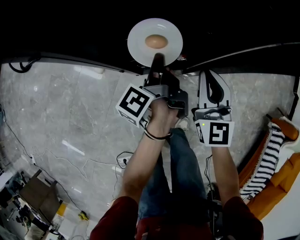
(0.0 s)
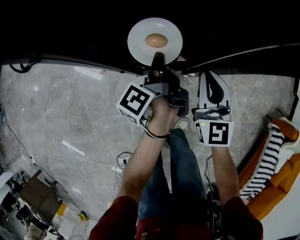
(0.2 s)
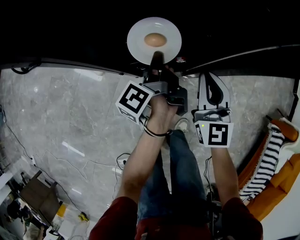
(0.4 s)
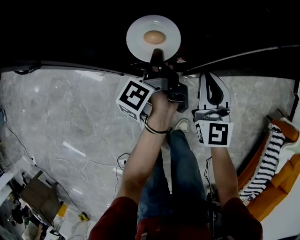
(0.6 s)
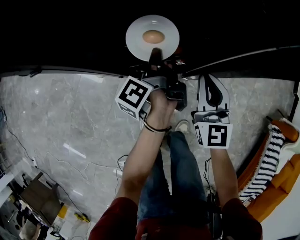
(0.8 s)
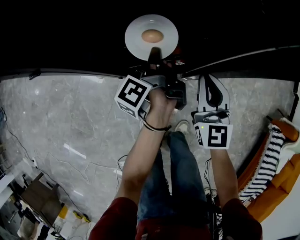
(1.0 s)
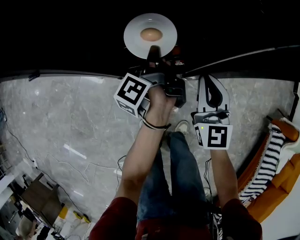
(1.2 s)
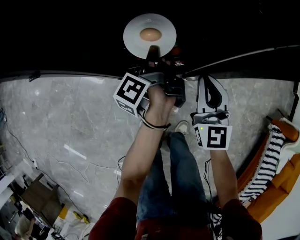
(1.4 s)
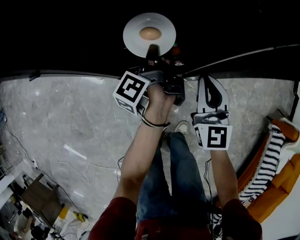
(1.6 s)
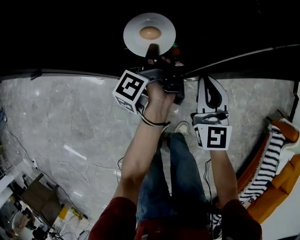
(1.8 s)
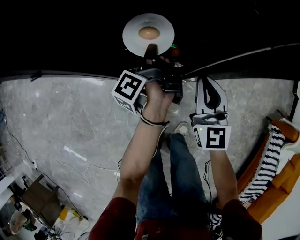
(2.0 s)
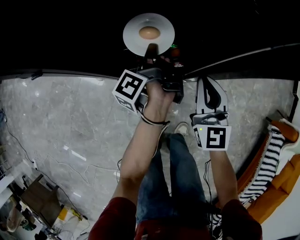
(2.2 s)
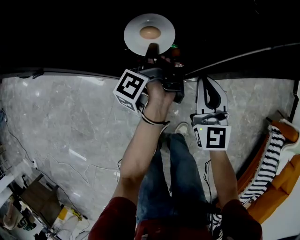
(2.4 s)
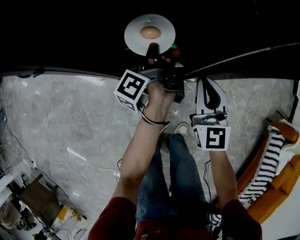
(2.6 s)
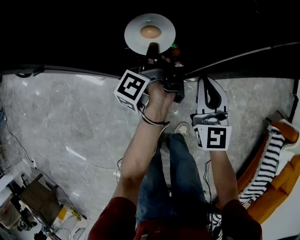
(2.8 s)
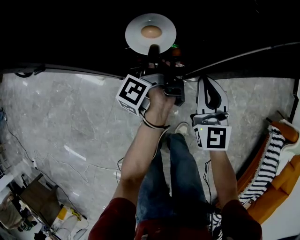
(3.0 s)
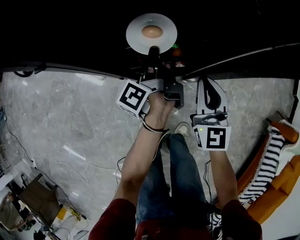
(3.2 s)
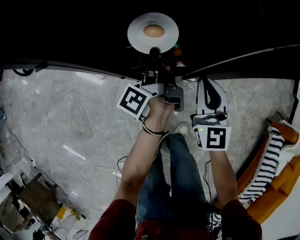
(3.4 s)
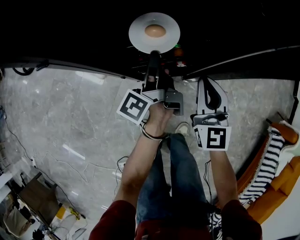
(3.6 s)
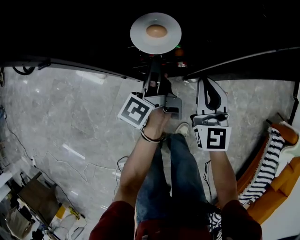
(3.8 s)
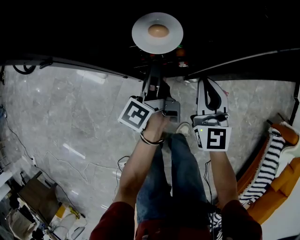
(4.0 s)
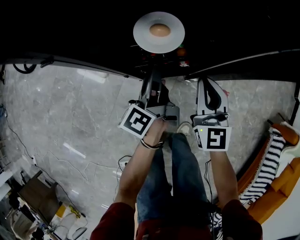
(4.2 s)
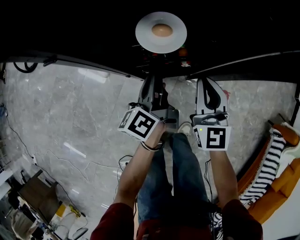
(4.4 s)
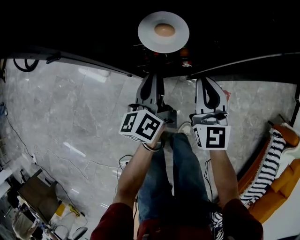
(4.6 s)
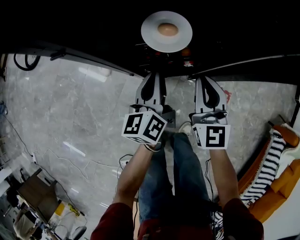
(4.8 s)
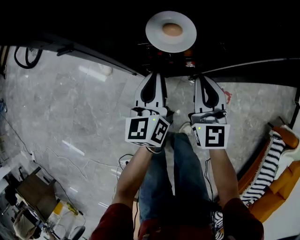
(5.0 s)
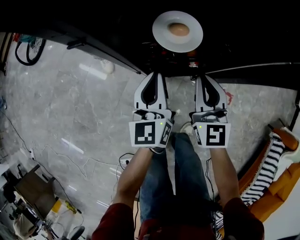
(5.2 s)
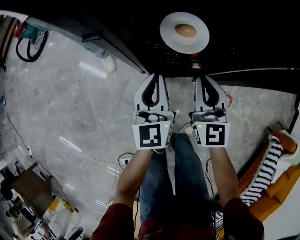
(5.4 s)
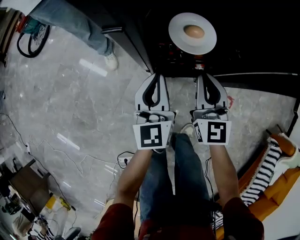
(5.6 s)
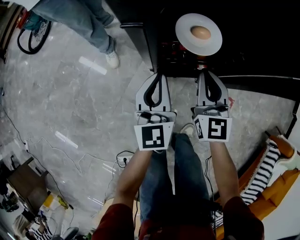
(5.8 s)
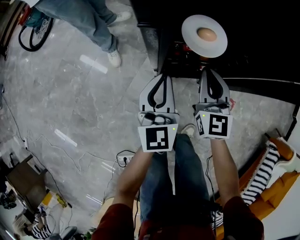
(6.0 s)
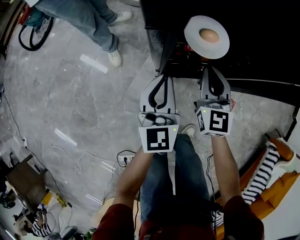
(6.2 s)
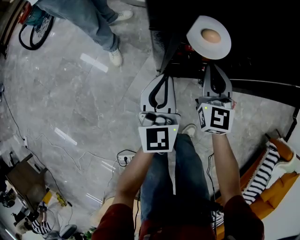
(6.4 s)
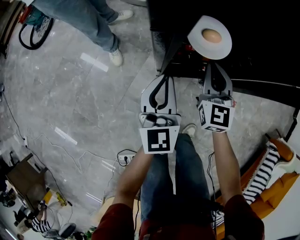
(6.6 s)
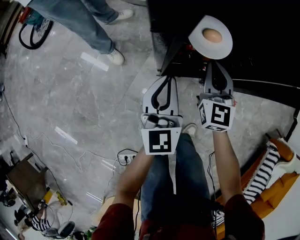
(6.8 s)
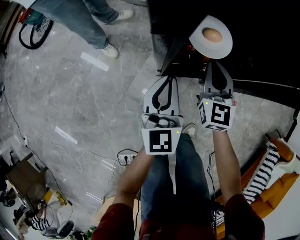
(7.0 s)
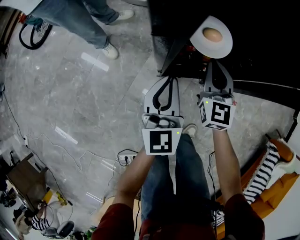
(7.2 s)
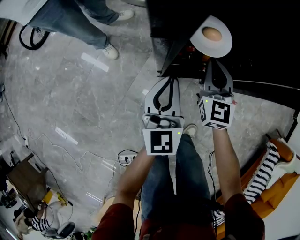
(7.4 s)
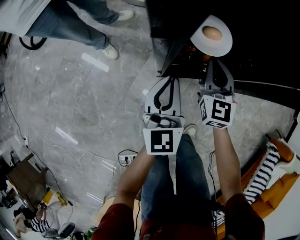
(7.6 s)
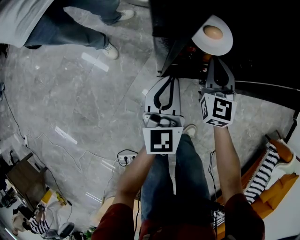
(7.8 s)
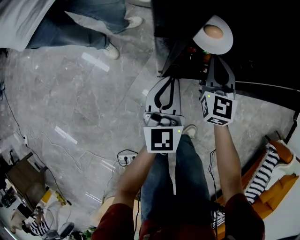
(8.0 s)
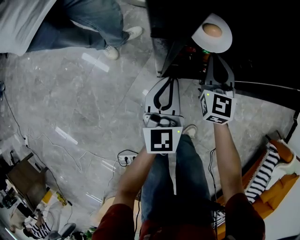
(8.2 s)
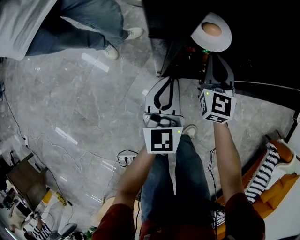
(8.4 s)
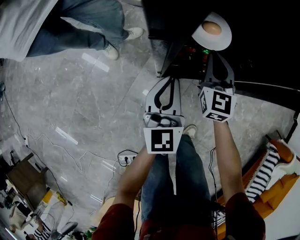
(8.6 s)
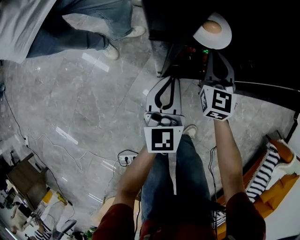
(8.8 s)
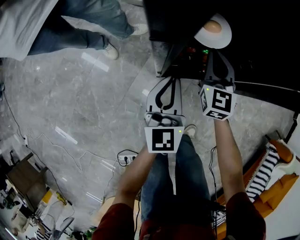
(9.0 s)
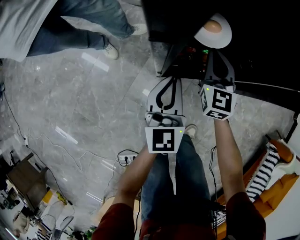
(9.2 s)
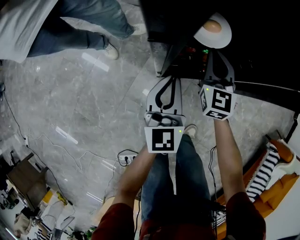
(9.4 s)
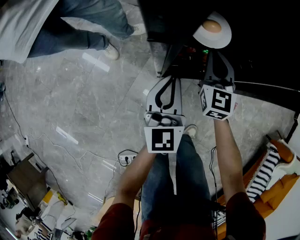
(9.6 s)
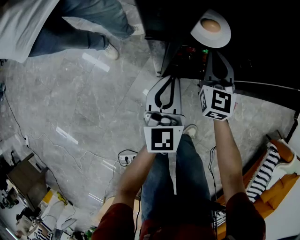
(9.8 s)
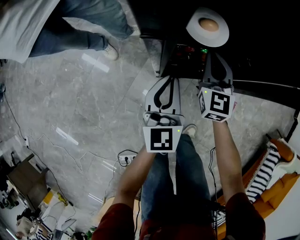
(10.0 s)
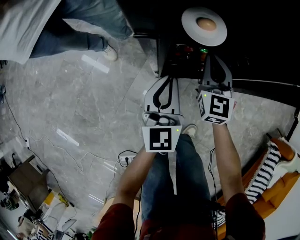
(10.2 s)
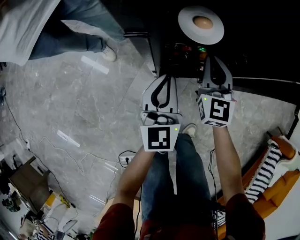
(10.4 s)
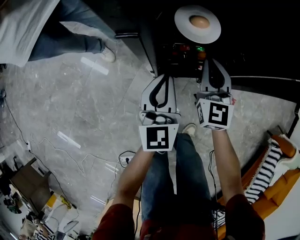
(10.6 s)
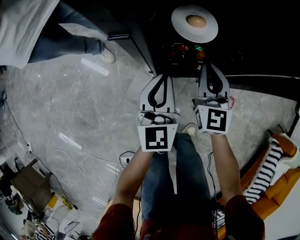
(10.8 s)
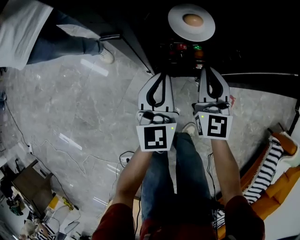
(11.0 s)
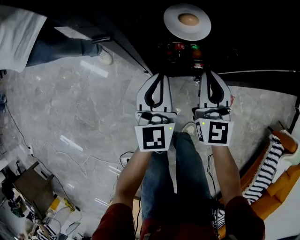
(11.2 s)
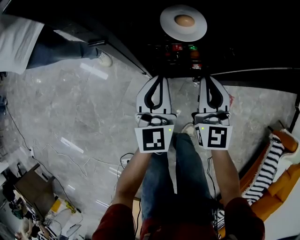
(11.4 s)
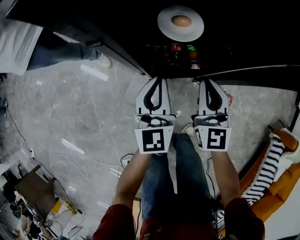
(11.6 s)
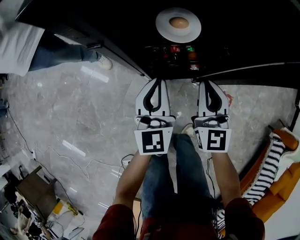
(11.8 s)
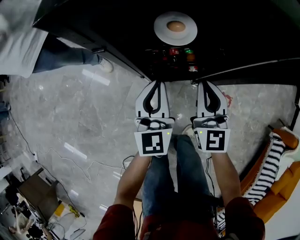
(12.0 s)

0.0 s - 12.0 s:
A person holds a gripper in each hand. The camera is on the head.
0.0 s - 1.6 s: The left gripper goes approximately 5 cm forward.
1.6 s - 3.0 s: Neither gripper changes place.
3.0 s - 4.4 s: The left gripper goes roughly 5 cm backward, and rotates about 30 degrees.
4.4 s - 6.0 s: Both grippers travel together to the left, approximately 10 cm. The left gripper twists roughly 50 degrees clockwise, seen from behind.
6.0 s - 7.6 s: The right gripper moves approximately 5 cm.
7.6 s - 10.4 s: The grippers make only small movements.
10.4 s - 12.0 s: The left gripper moves approximately 5 cm; the right gripper goes some 10 cm backward and upward.

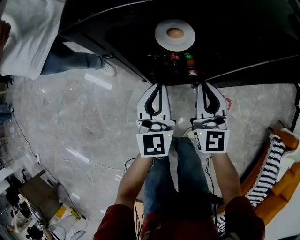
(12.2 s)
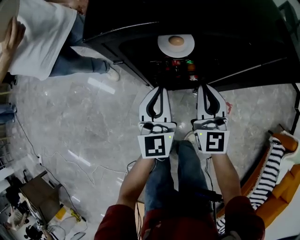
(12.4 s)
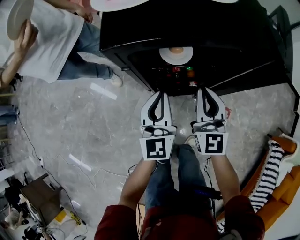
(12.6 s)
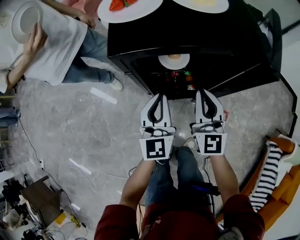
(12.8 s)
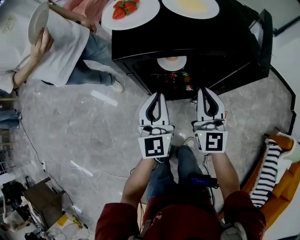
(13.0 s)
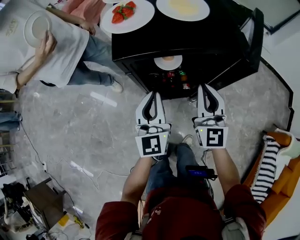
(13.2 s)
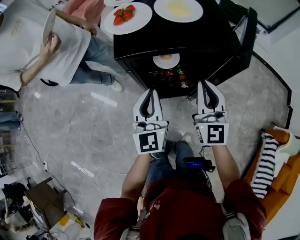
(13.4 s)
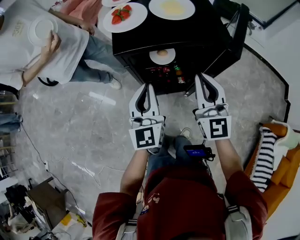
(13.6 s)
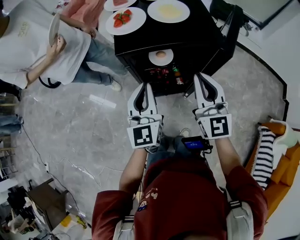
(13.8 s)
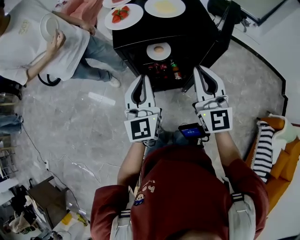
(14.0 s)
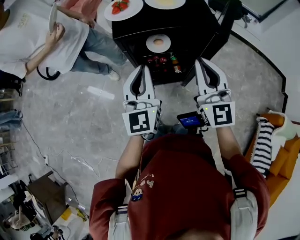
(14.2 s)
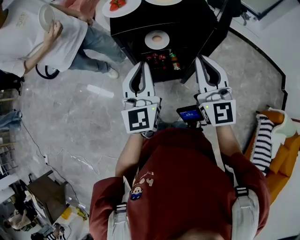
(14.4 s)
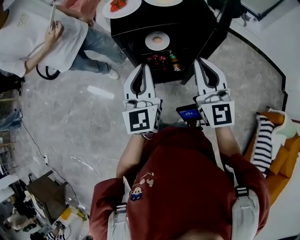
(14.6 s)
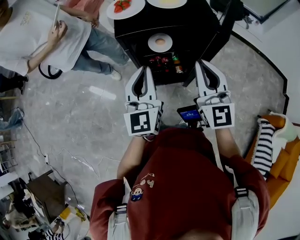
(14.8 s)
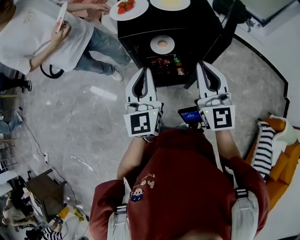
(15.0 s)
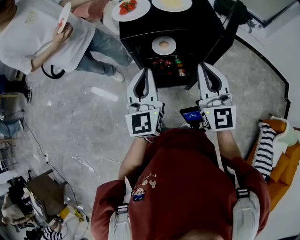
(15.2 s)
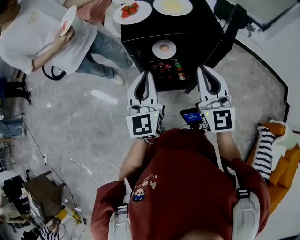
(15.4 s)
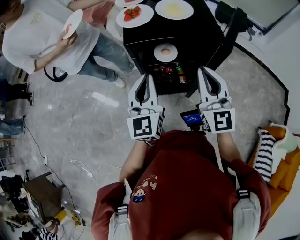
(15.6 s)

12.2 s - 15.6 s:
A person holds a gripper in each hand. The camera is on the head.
12.2 s - 13.8 s: The two grippers go some 25 cm upward.
13.8 s - 15.6 s: The grippers move only a little.

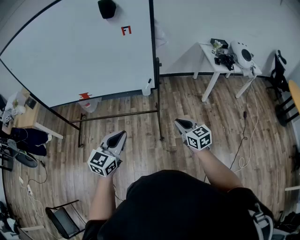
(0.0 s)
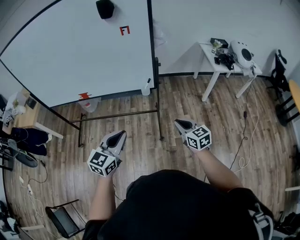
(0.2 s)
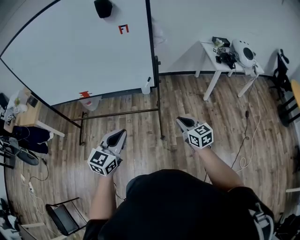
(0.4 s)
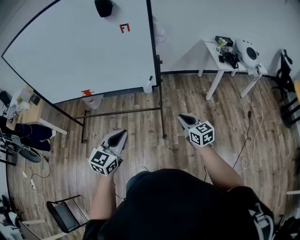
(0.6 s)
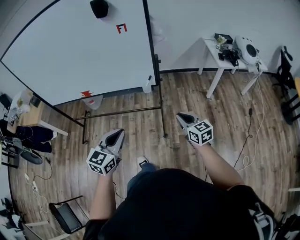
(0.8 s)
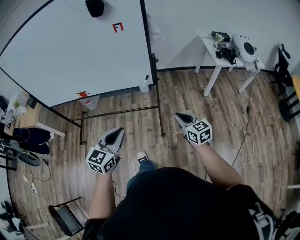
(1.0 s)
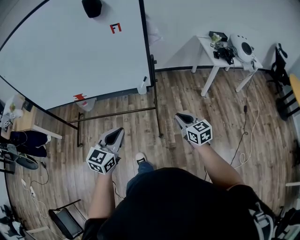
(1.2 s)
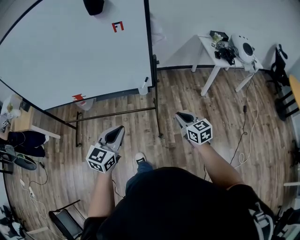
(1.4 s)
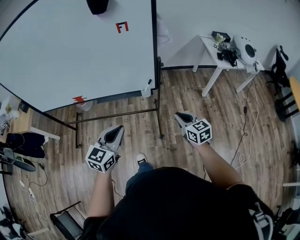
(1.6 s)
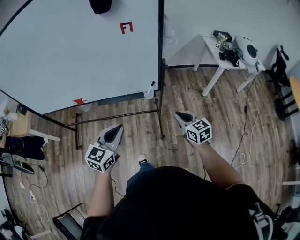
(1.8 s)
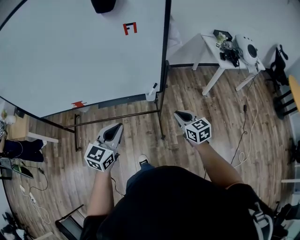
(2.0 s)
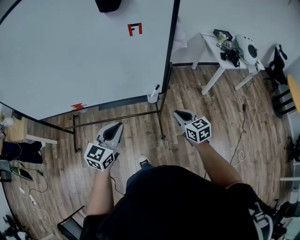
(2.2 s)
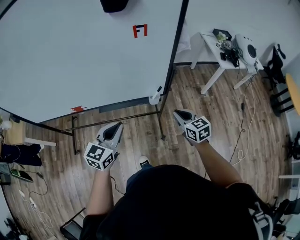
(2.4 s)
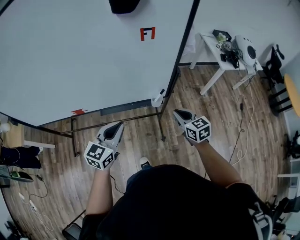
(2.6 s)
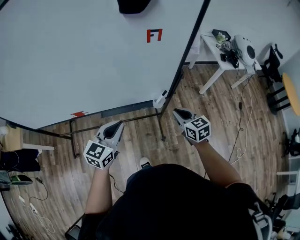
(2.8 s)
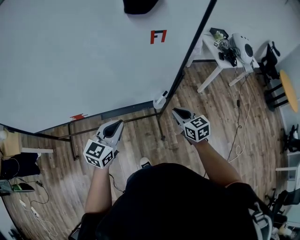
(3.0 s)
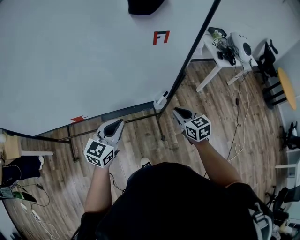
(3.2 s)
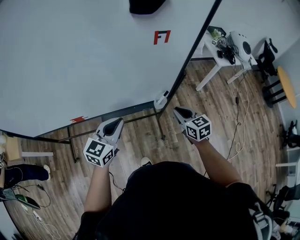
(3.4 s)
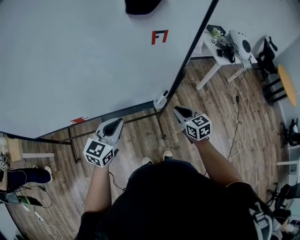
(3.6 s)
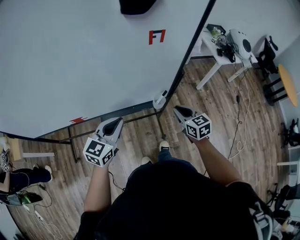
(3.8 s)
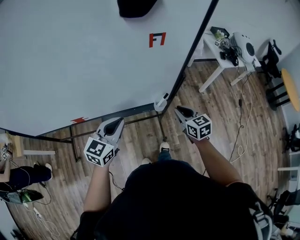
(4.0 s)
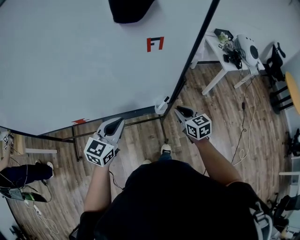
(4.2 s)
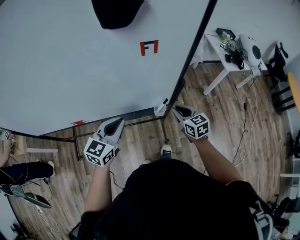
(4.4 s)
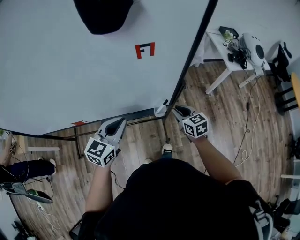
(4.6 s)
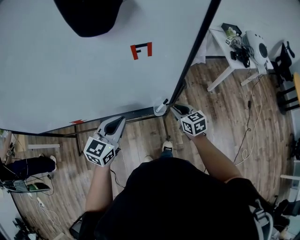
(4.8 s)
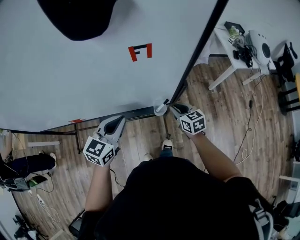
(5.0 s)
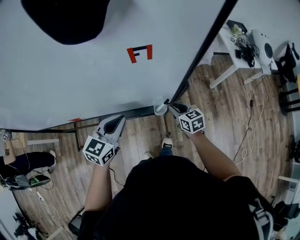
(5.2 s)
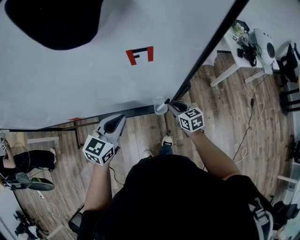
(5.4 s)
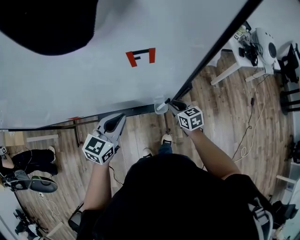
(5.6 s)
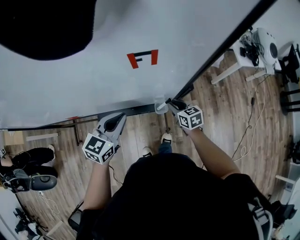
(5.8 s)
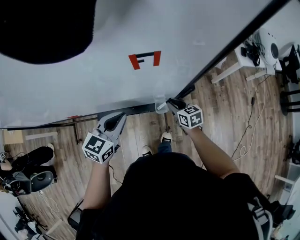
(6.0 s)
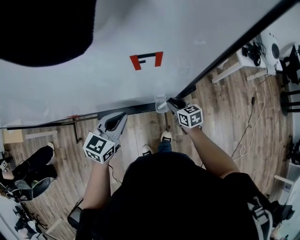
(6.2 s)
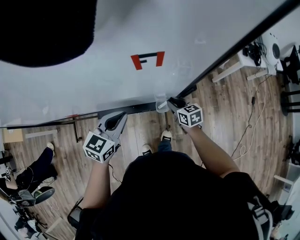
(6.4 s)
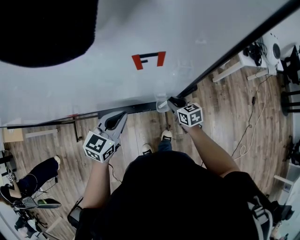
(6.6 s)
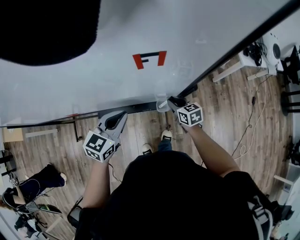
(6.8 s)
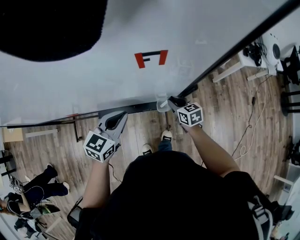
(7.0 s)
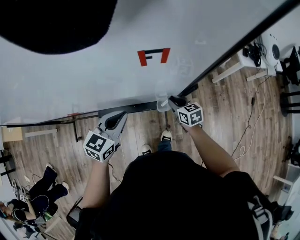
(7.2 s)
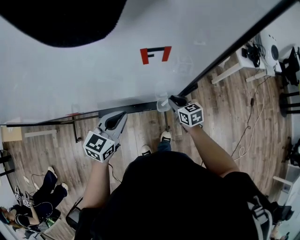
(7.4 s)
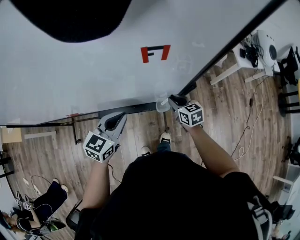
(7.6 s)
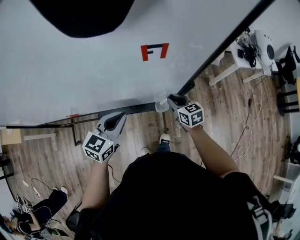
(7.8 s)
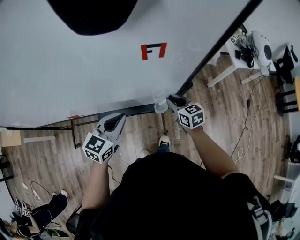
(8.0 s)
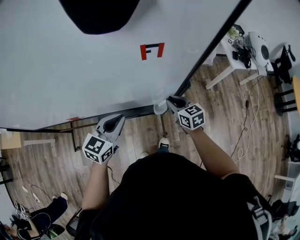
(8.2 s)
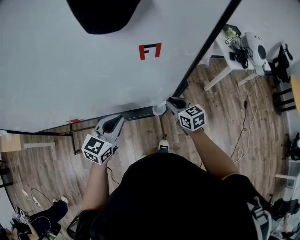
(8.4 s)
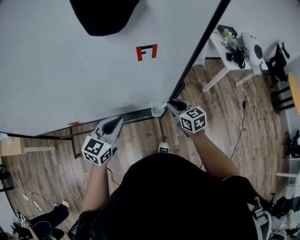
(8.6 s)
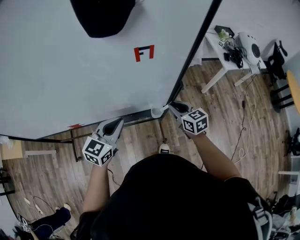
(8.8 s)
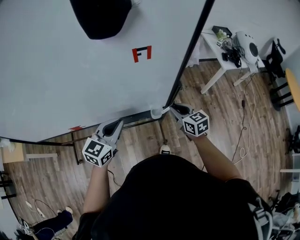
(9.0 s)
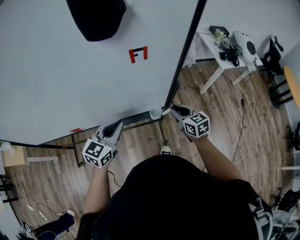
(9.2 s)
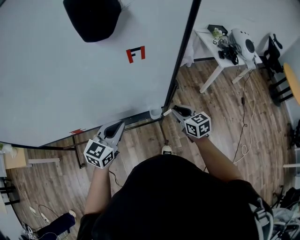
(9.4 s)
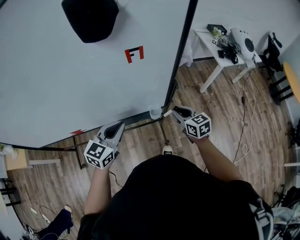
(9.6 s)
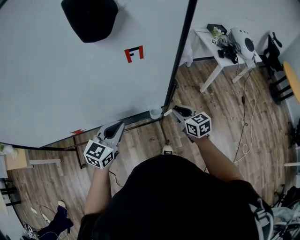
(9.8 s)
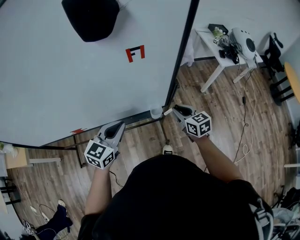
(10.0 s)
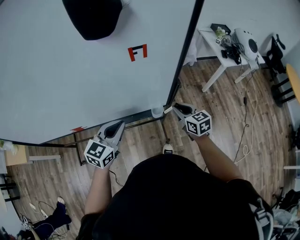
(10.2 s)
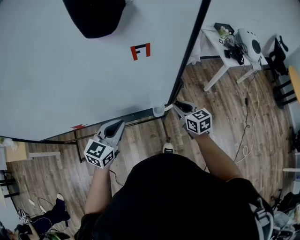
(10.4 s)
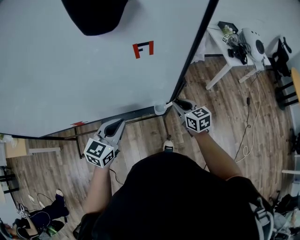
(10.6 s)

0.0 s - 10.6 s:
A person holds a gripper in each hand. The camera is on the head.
0.0 s - 1.6 s: The two grippers go approximately 10 cm forward.
1.6 s - 3.0 s: Both grippers move forward and to the left, approximately 25 cm.
3.0 s - 4.6 s: The grippers both shift forward by some 10 cm.
4.6 s - 6.0 s: The right gripper goes approximately 10 cm downward and forward; the left gripper heads forward, covering approximately 5 cm.
6.0 s - 7.6 s: There are only small adjustments of the grippers.
7.6 s - 9.0 s: The left gripper moves approximately 5 cm, while the right gripper travels upward and backward by some 10 cm.
9.0 s - 10.6 s: The grippers move only a little.
